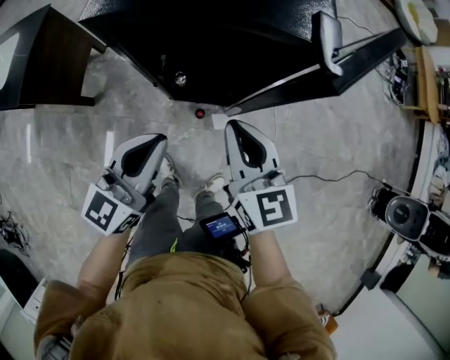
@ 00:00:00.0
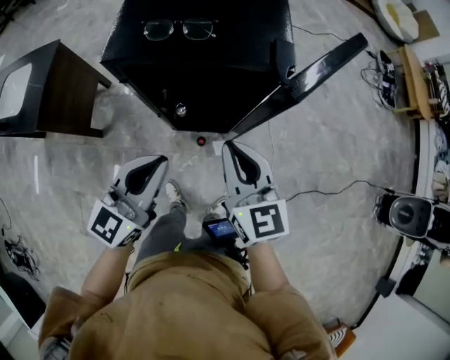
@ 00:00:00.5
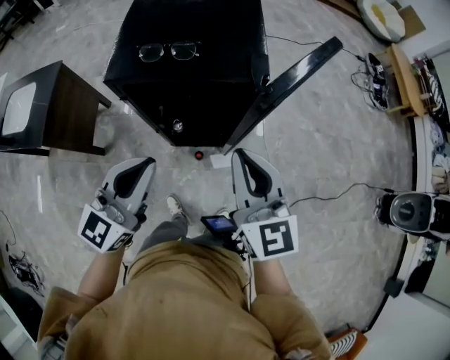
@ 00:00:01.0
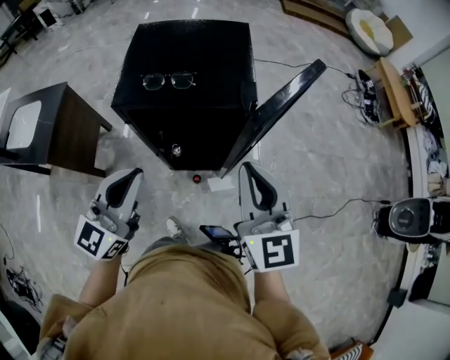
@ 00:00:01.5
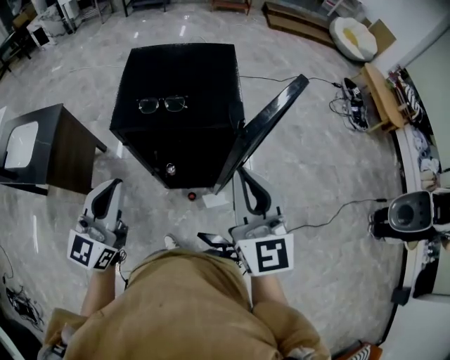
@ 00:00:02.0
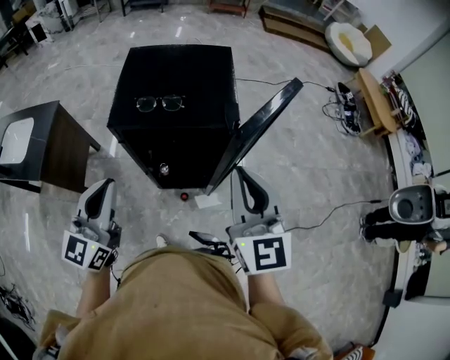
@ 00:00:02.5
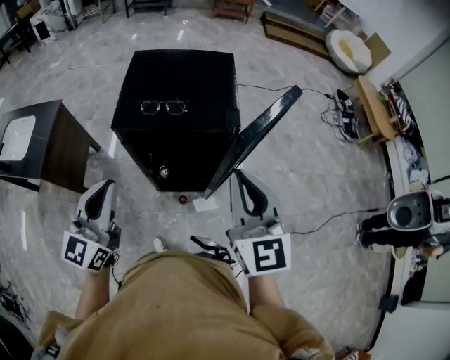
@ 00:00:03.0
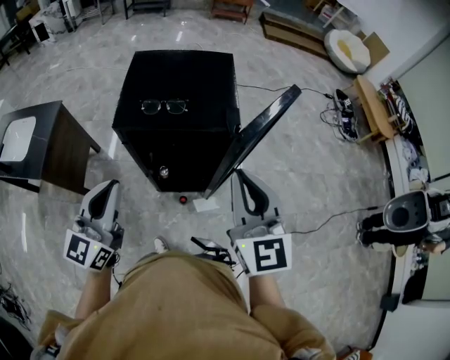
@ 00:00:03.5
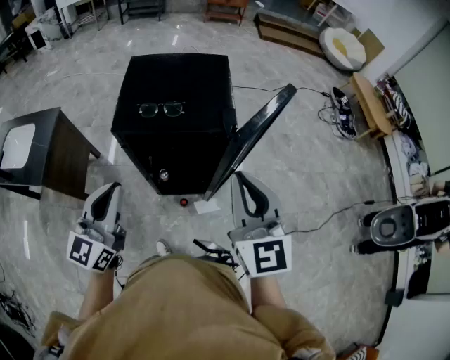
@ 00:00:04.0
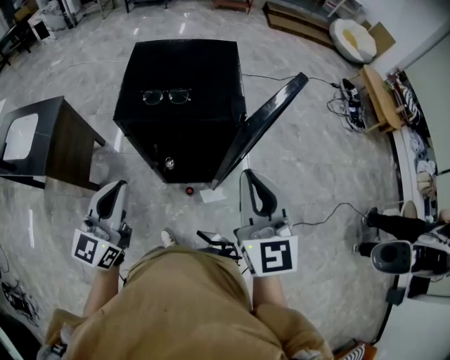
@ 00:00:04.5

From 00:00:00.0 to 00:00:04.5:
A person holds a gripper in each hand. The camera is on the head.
From 00:00:00.0 to 00:00:02.0: The two grippers go roughly 25 cm upward. The right gripper swivels roughly 30 degrees.
From 00:00:02.0 to 00:00:04.5: The grippers stay close to where they were, moving slightly.

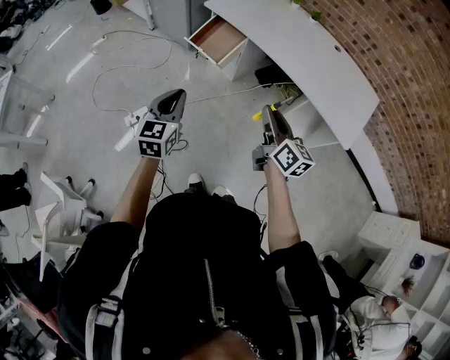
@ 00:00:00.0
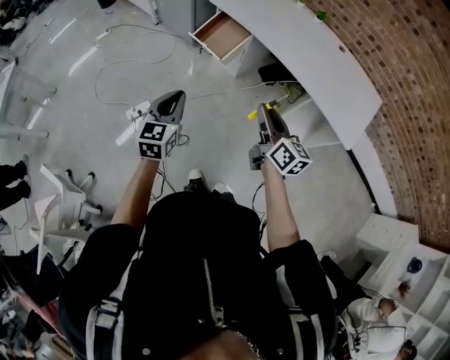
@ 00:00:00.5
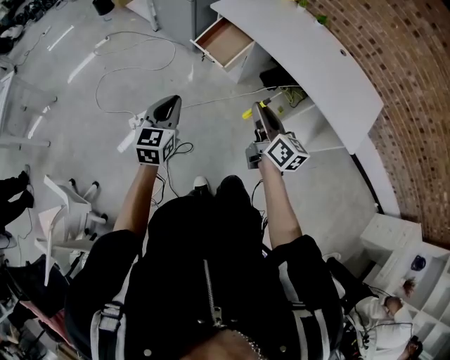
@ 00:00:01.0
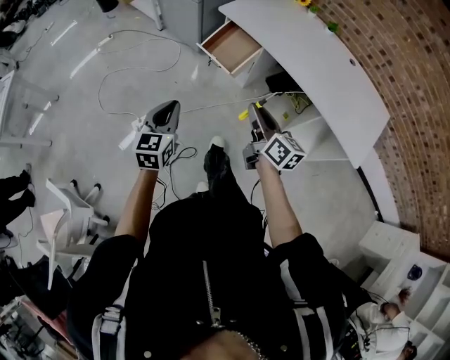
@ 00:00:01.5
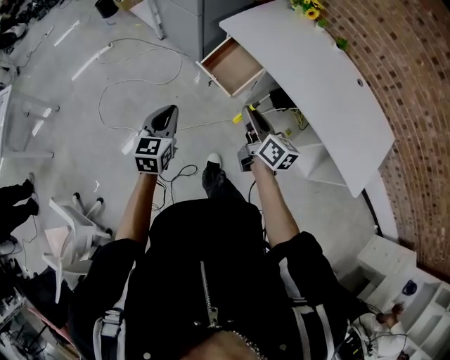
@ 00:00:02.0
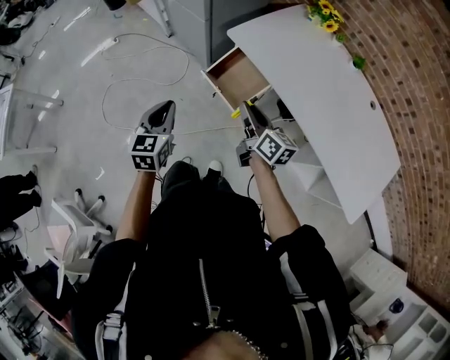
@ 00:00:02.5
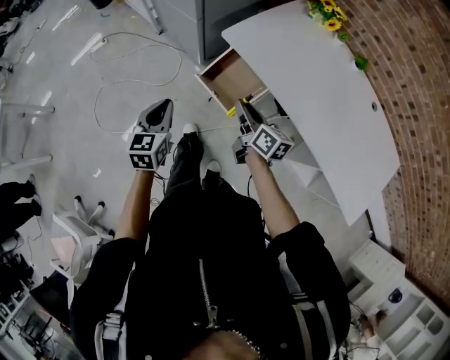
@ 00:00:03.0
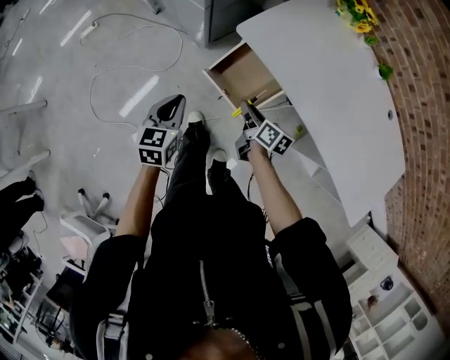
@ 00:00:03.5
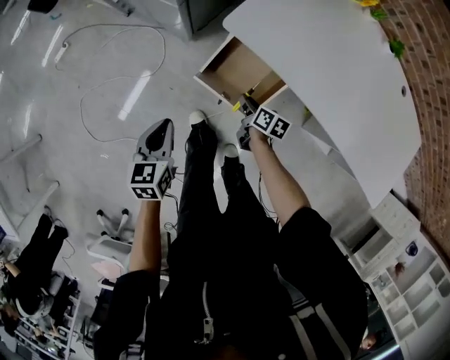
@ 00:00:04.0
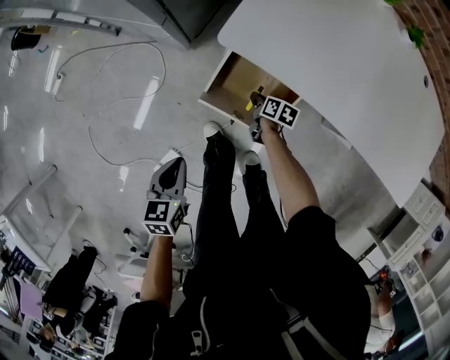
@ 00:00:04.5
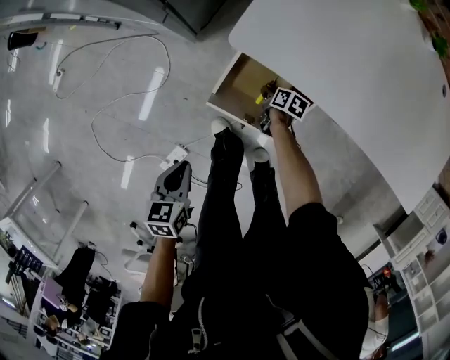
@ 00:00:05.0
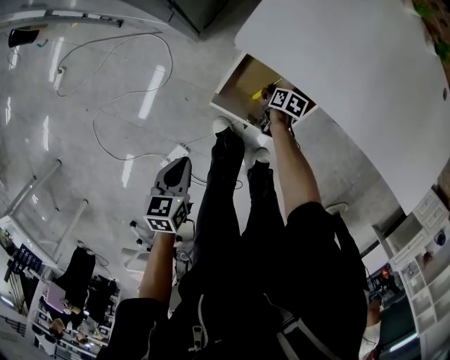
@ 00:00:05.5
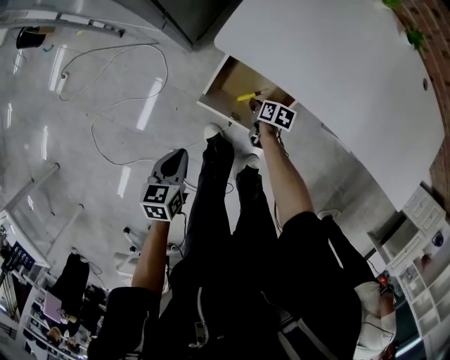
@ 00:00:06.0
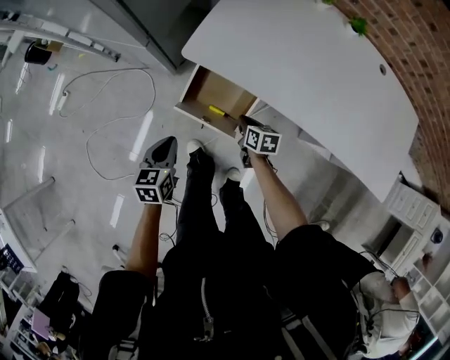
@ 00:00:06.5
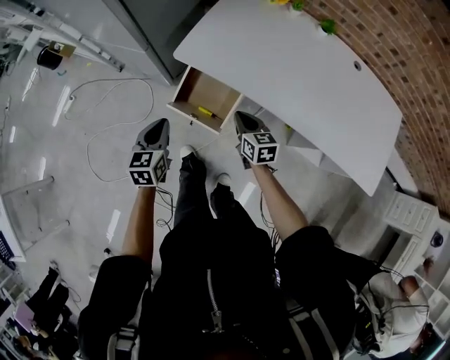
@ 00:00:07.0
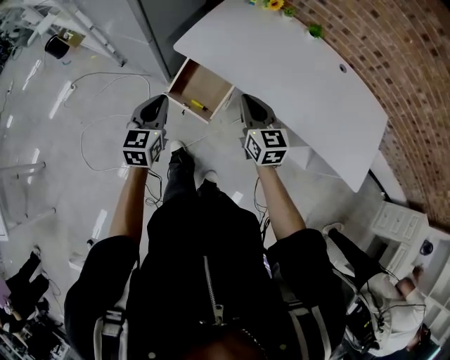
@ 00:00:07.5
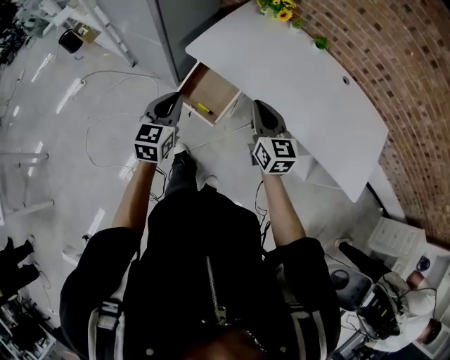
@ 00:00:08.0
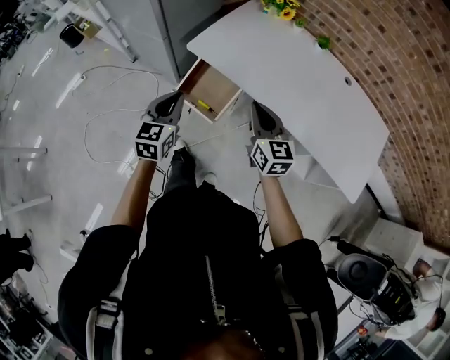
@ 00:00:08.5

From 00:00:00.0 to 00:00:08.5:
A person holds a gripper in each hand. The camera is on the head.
From 00:00:00.0 to 00:00:02.0: Both grippers move forward and to the left, roughly 25 cm.
From 00:00:02.0 to 00:00:04.0: The left gripper heads forward and downward, covering about 35 cm, and rotates approximately 20 degrees, while the right gripper travels downward and forward by approximately 50 cm, and tips its fingers downward by some 40 degrees.
From 00:00:04.0 to 00:00:06.5: The two grippers go about 10 cm to the right. The left gripper travels downward and back again, approximately 10 cm each way. Meanwhile the right gripper reaches about 20 cm downward, then returns.
From 00:00:06.5 to 00:00:08.5: The right gripper shifts some 35 cm upward, and points its fingers some 30 degrees further upward. The left gripper moves upward and to the right, approximately 25 cm, and changes its angle by some 30 degrees.

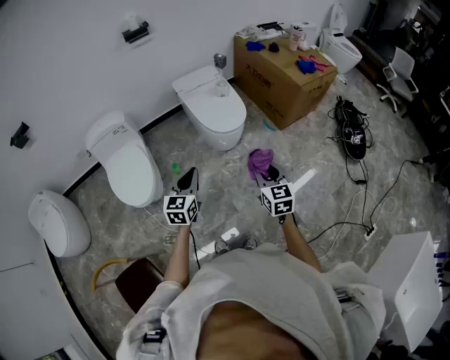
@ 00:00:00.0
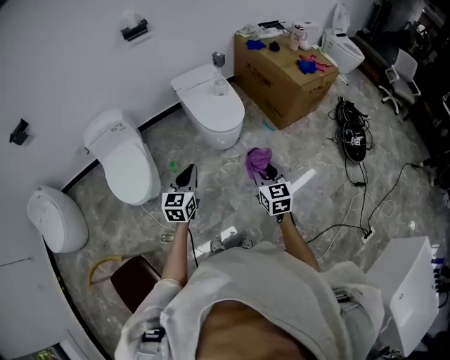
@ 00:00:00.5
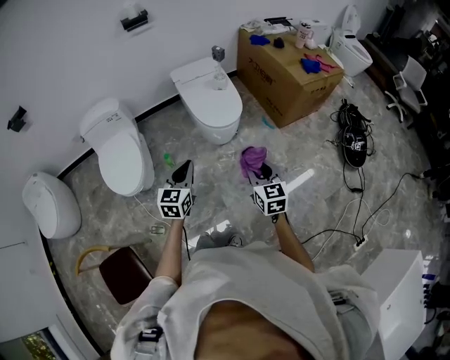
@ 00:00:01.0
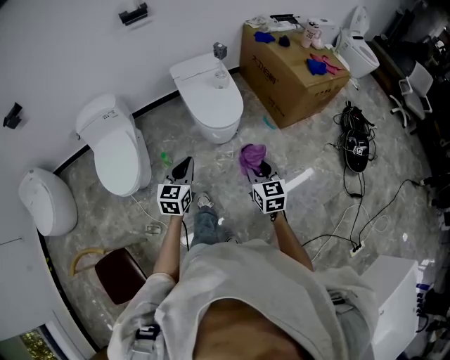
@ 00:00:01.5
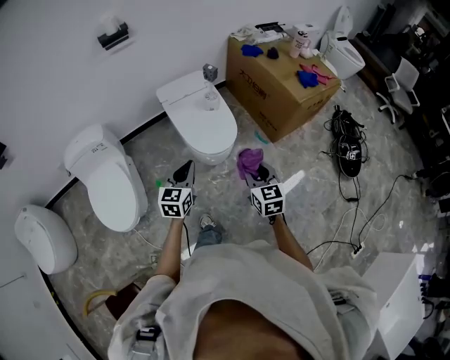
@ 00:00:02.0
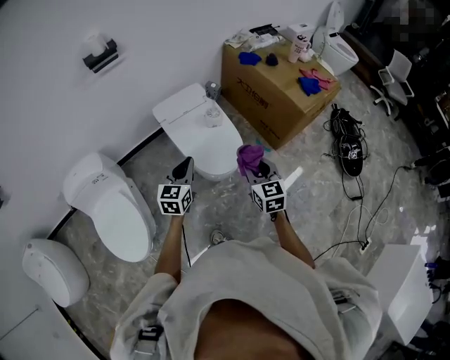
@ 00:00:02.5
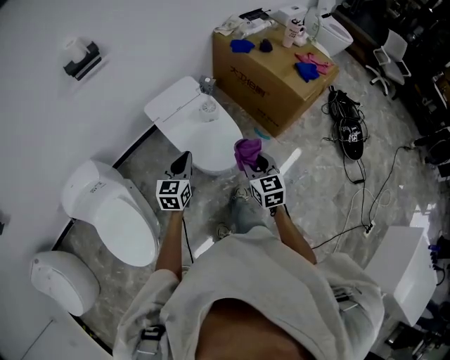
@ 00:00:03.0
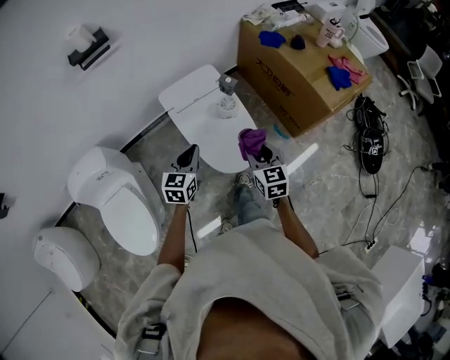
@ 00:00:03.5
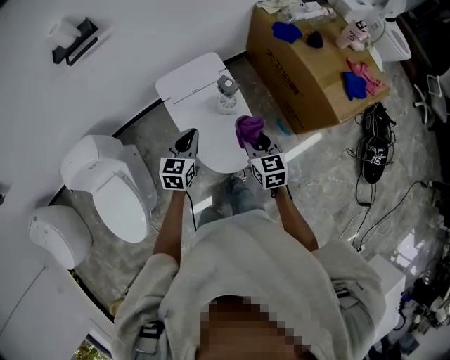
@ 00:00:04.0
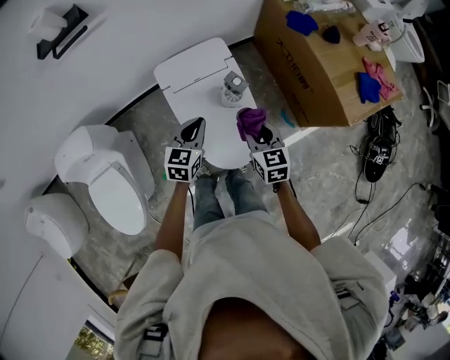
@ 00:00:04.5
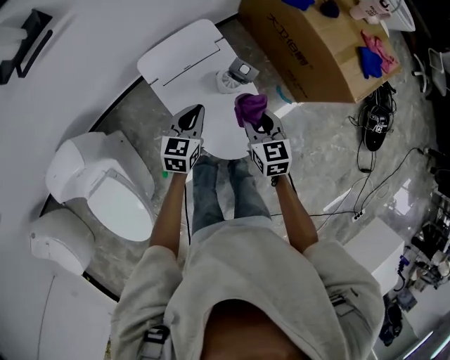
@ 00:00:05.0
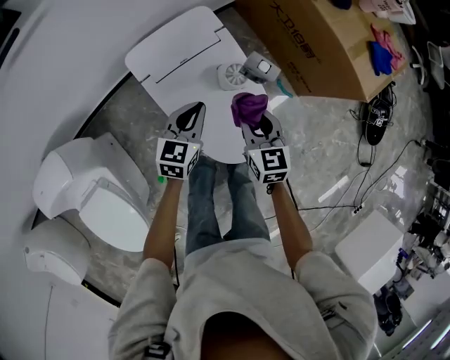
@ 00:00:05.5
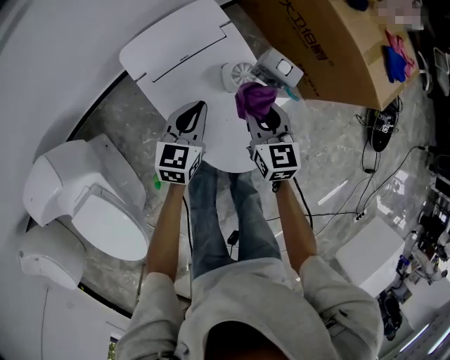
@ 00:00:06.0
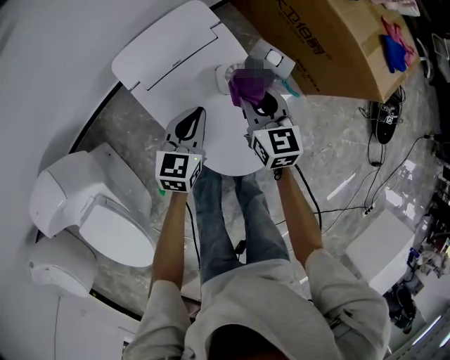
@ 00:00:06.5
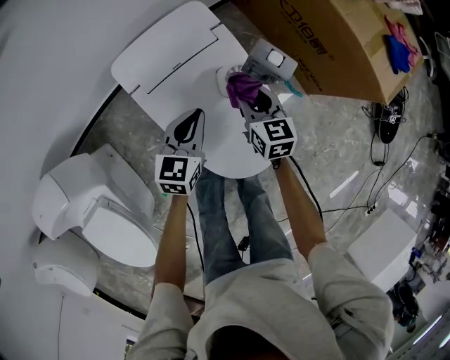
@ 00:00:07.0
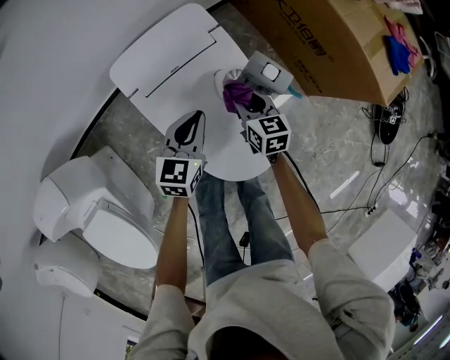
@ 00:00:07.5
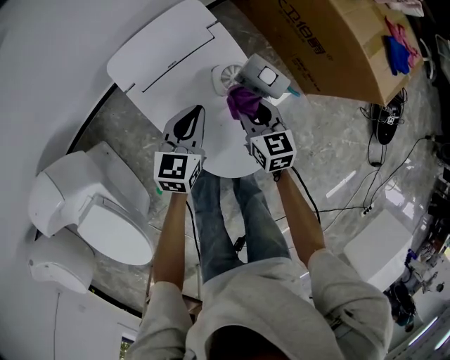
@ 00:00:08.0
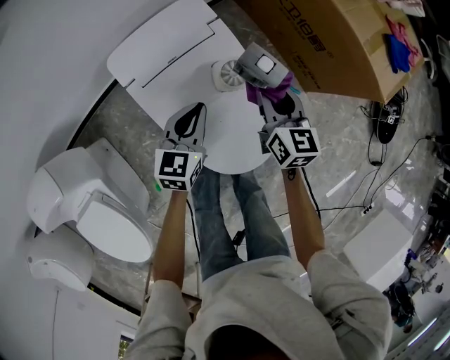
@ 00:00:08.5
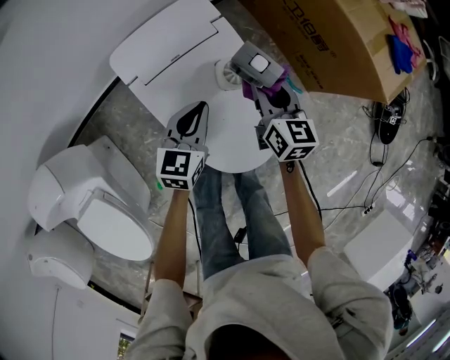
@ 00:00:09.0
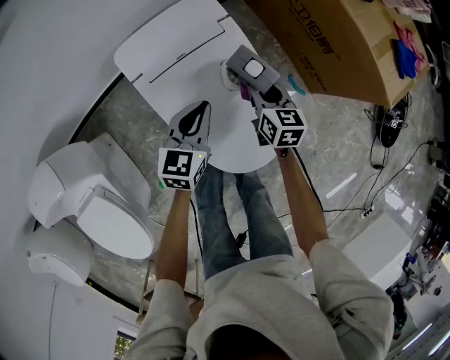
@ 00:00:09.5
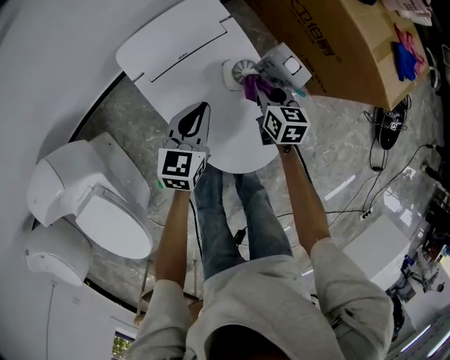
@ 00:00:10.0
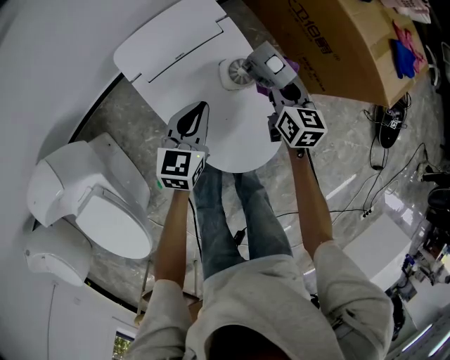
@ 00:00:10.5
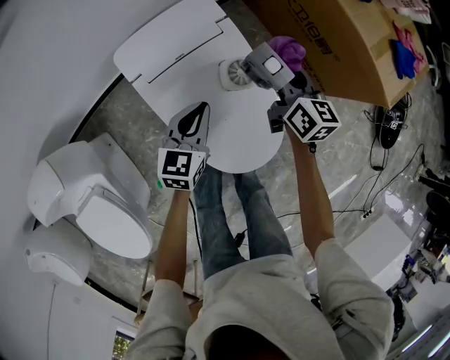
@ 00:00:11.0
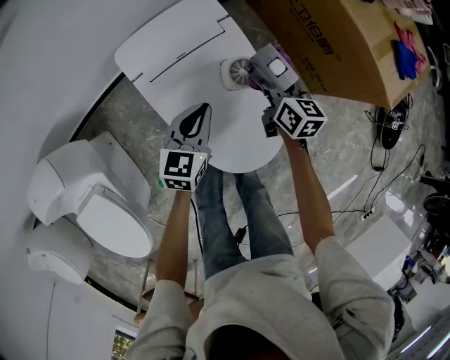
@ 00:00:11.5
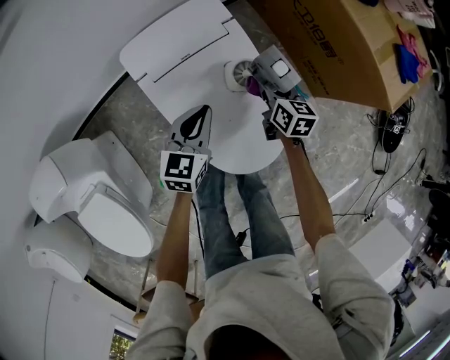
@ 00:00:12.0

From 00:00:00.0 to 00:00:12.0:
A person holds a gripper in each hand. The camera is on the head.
From 00:00:00.0 to 00:00:02.0: Both grippers move forward, about 20 cm.
From 00:00:02.0 to 00:00:04.0: The two grippers go roughly 35 cm forward.
From 00:00:04.0 to 00:00:06.0: The left gripper is displaced downward and forward by roughly 20 cm; the right gripper travels downward, forward and to the left by roughly 20 cm.
From 00:00:06.0 to 00:00:08.0: The right gripper heads downward, covering about 5 cm.
From 00:00:08.0 to 00:00:10.0: The right gripper reaches roughly 5 cm upward, then returns.
From 00:00:10.0 to 00:00:12.0: The right gripper moves about 10 cm upward and comes back.

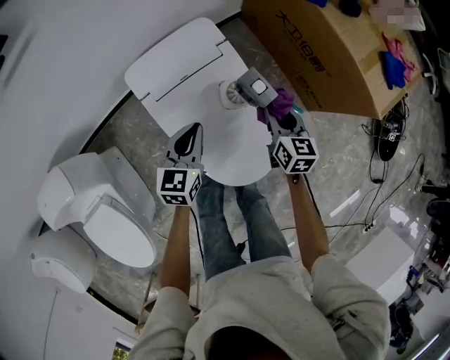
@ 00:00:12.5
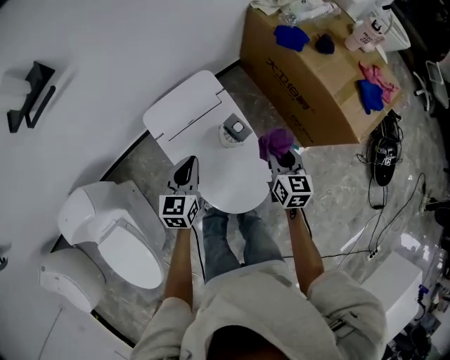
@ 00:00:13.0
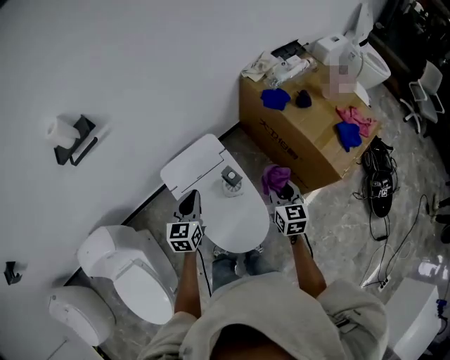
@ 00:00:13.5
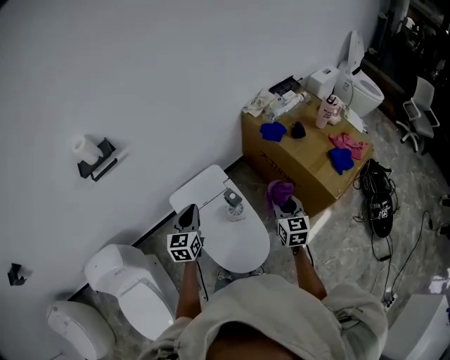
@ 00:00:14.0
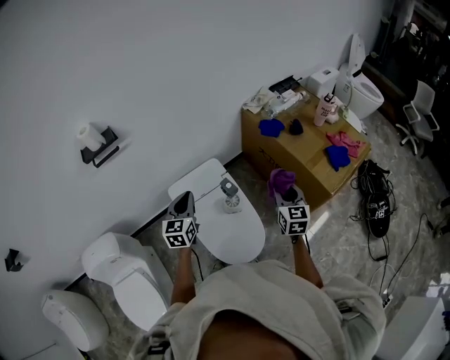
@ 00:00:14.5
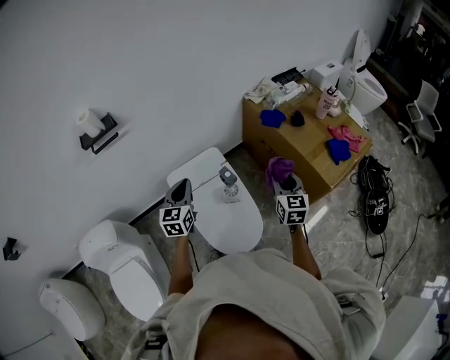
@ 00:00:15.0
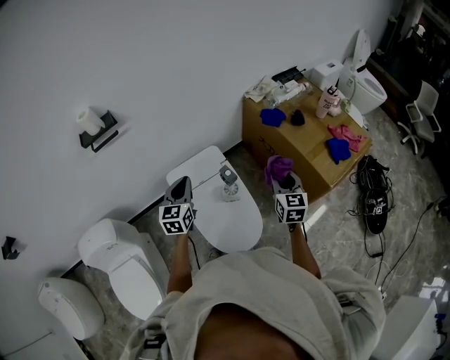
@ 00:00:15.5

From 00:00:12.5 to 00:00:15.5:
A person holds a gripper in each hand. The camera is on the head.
From 00:00:12.5 to 00:00:14.0: The two grippers go approximately 25 cm upward.
From 00:00:14.0 to 00:00:15.5: The grippers move only a little.
